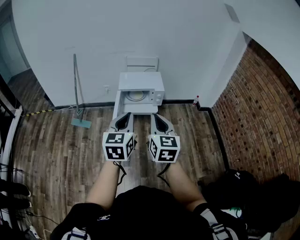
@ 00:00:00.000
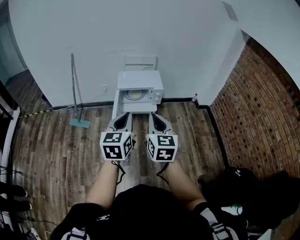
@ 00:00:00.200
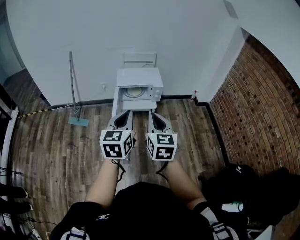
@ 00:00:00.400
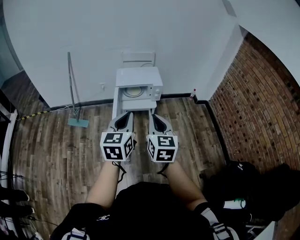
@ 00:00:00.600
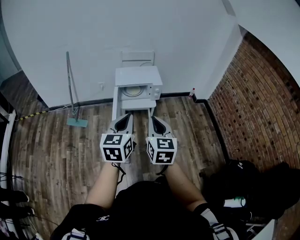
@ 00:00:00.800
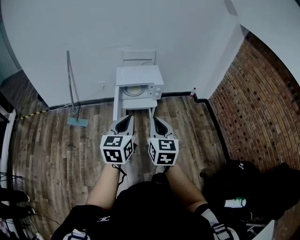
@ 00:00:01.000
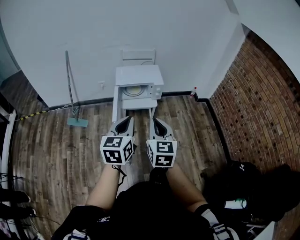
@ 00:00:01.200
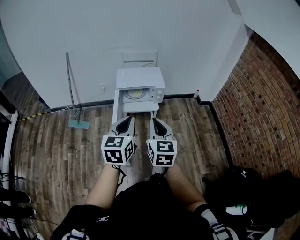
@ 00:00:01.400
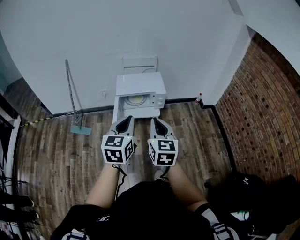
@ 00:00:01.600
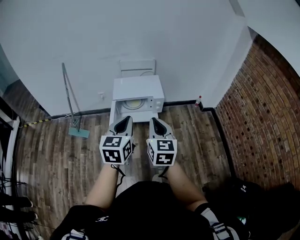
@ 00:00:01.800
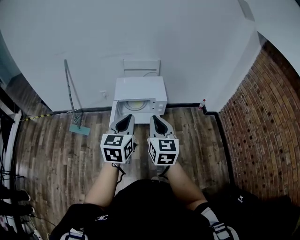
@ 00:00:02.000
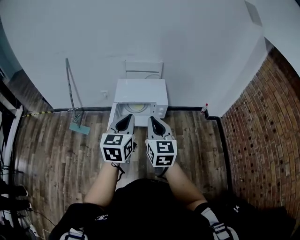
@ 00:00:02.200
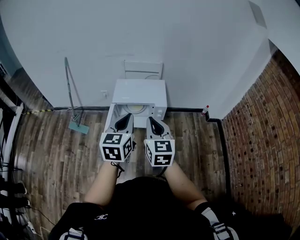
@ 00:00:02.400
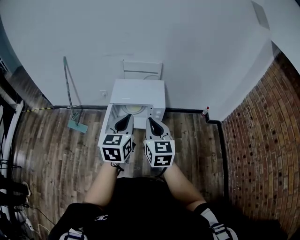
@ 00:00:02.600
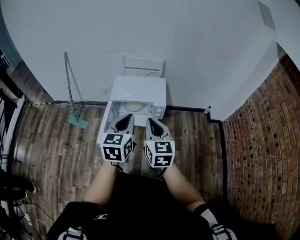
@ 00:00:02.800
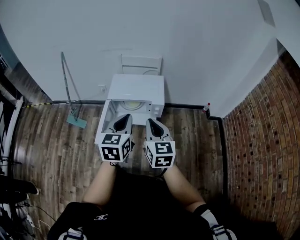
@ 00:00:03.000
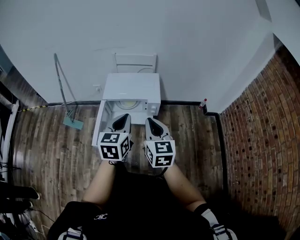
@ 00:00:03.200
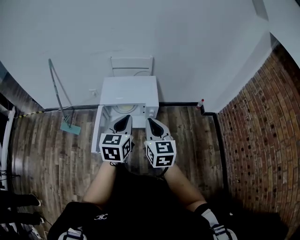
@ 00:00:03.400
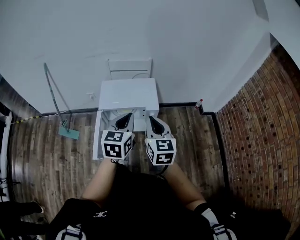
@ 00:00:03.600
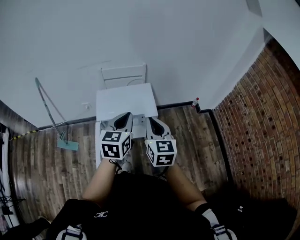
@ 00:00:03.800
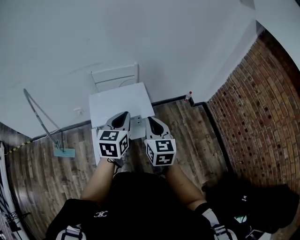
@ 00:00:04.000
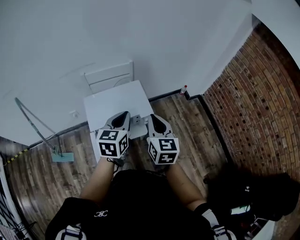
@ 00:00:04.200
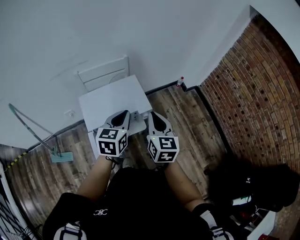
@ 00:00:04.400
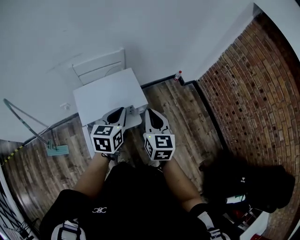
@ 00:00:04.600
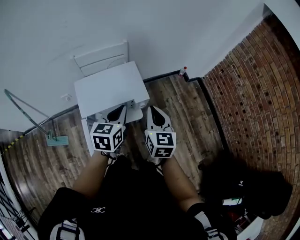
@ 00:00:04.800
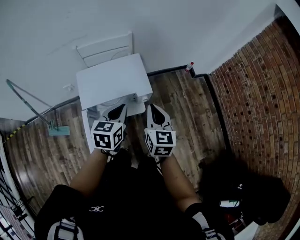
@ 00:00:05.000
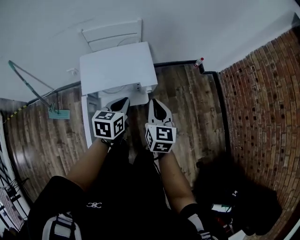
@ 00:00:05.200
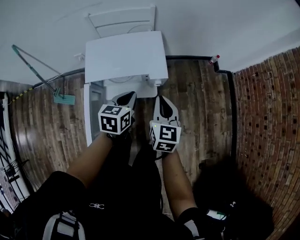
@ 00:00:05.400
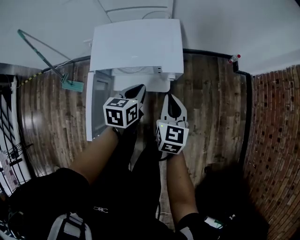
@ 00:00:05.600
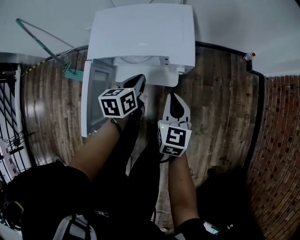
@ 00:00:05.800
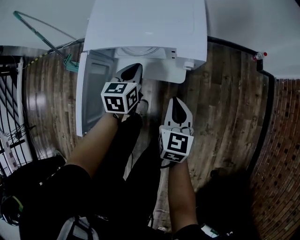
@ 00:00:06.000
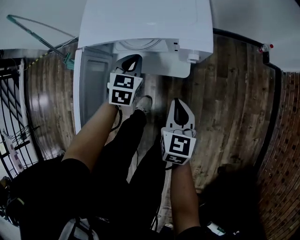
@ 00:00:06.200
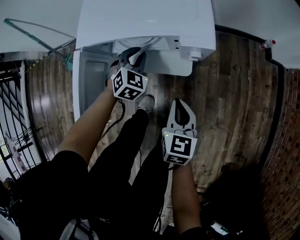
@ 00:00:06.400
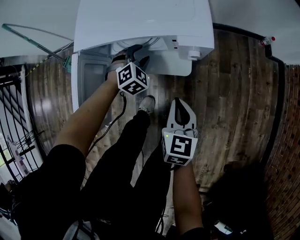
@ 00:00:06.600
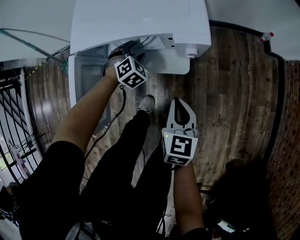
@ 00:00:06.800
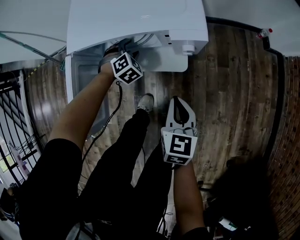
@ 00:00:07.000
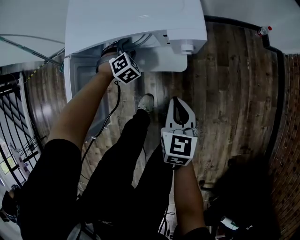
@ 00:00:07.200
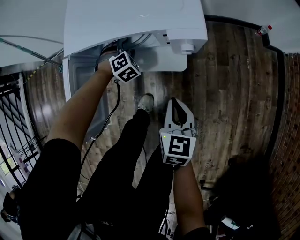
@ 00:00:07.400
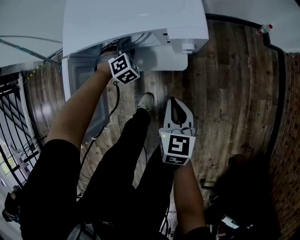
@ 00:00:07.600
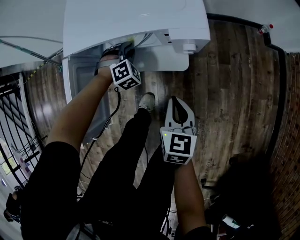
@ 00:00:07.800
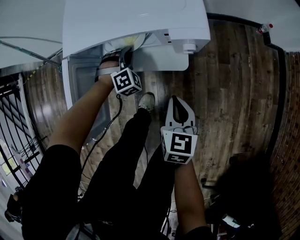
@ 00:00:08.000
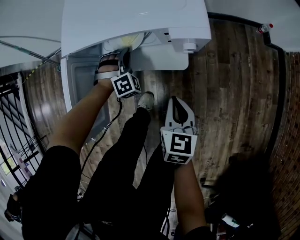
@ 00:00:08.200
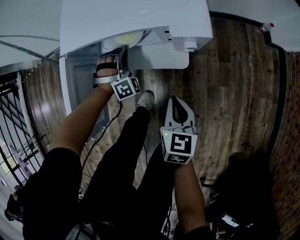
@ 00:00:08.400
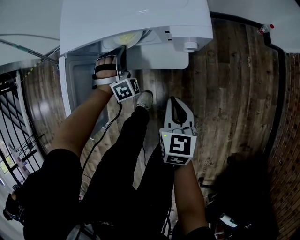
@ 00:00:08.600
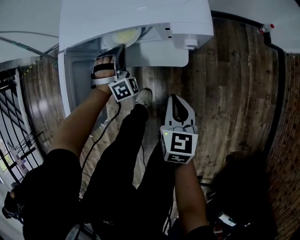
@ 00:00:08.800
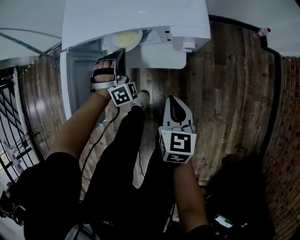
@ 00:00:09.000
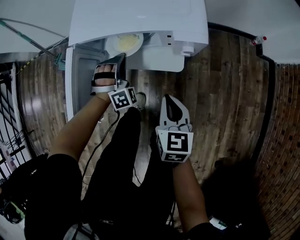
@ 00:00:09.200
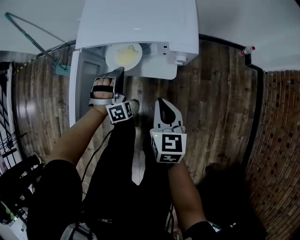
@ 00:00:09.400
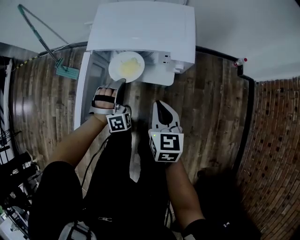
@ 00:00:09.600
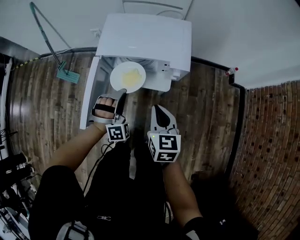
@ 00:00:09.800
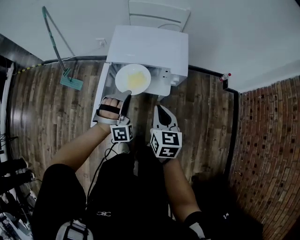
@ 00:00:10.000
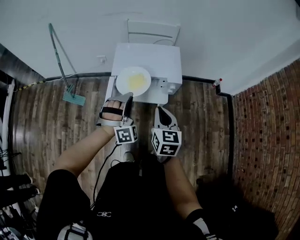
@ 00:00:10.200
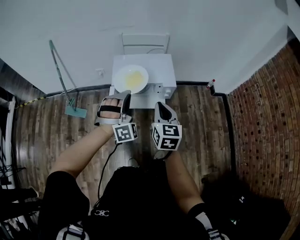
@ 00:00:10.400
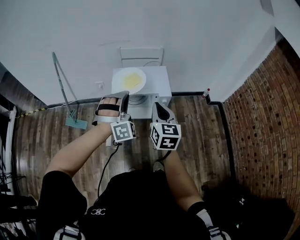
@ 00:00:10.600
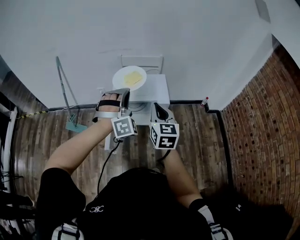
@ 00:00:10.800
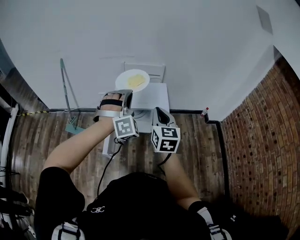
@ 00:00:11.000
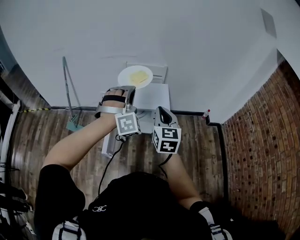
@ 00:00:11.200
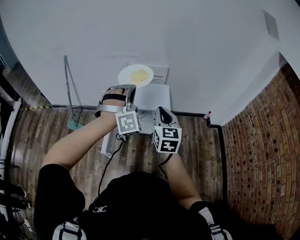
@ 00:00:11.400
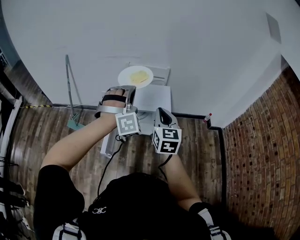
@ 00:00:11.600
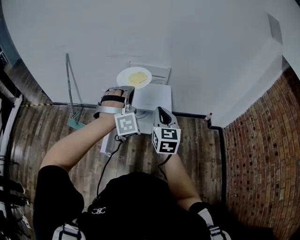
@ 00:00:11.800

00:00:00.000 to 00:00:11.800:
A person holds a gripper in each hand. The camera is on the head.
00:00:00.000 to 00:00:01.400: The left gripper shifts some 5 cm forward; the right gripper travels downward by roughly 5 cm.
00:00:01.400 to 00:00:03.000: The grippers both shift forward and to the right by roughly 25 cm.
00:00:03.000 to 00:00:04.400: The right gripper shifts by some 20 cm, and rotates about 30 degrees, while the left gripper shifts by some 25 cm, and changes its angle by some 30 degrees.
00:00:04.400 to 00:00:06.000: Both grippers travel together downward, about 35 cm. The right gripper rotates some 20 degrees. The left gripper turns by approximately 30 degrees.
00:00:06.000 to 00:00:07.400: The left gripper moves downward and forward, about 20 cm, twists some 70 degrees clockwise, seen from behind, and opens its fingers; the right gripper moves downward, approximately 5 cm.
00:00:07.400 to 00:00:08.800: The left gripper is displaced upward by about 5 cm, tips its fingers upward by roughly 30 degrees, and closes up.
00:00:08.800 to 00:00:10.400: The grippers both shift upward by approximately 40 cm. The right gripper swivels roughly 20 degrees.
00:00:10.400 to 00:00:11.800: The two grippers go about 10 cm upward.

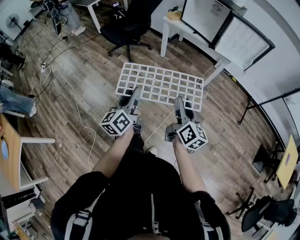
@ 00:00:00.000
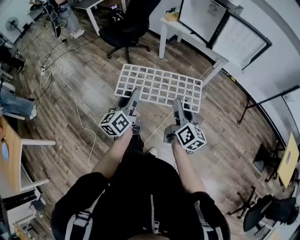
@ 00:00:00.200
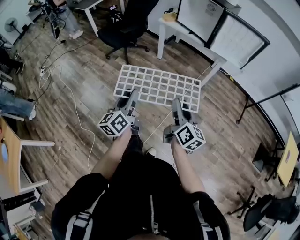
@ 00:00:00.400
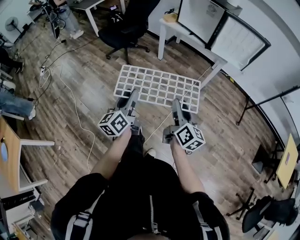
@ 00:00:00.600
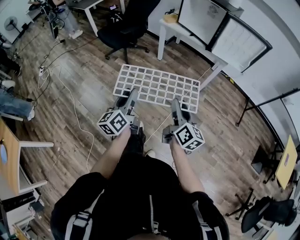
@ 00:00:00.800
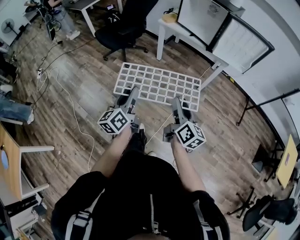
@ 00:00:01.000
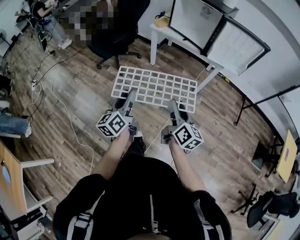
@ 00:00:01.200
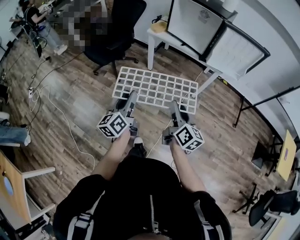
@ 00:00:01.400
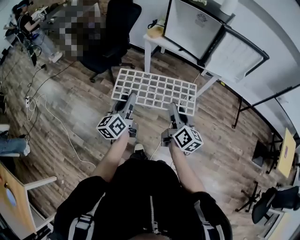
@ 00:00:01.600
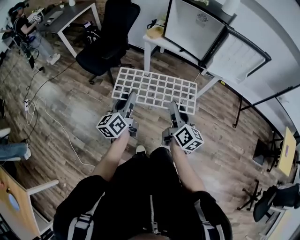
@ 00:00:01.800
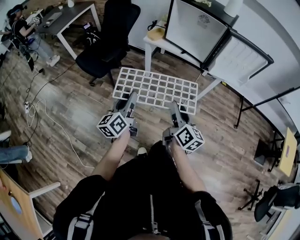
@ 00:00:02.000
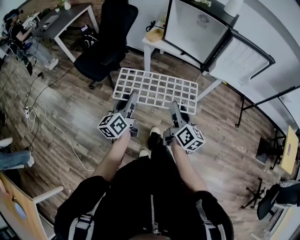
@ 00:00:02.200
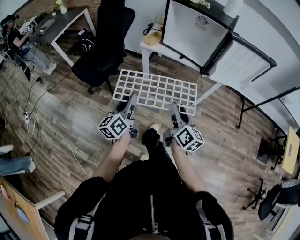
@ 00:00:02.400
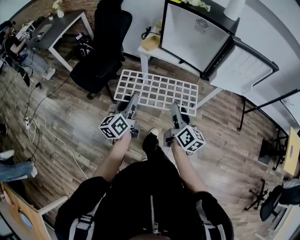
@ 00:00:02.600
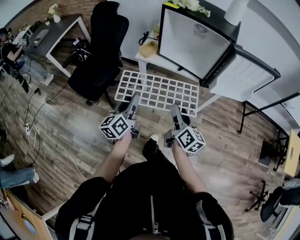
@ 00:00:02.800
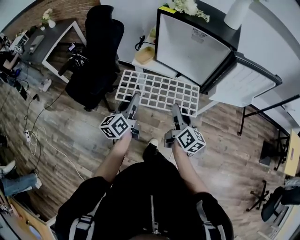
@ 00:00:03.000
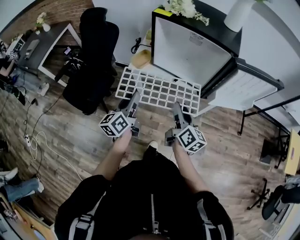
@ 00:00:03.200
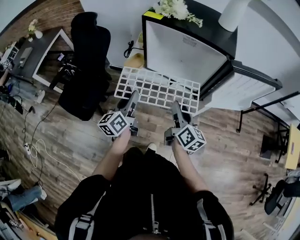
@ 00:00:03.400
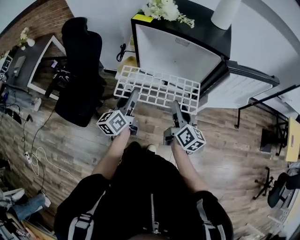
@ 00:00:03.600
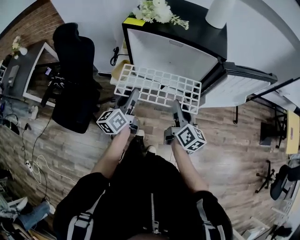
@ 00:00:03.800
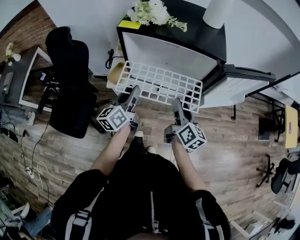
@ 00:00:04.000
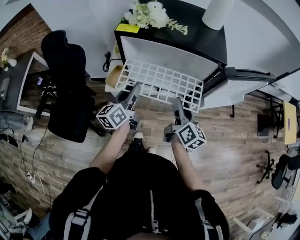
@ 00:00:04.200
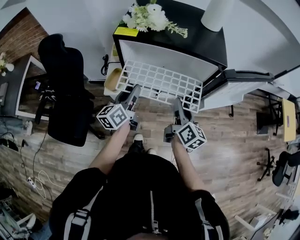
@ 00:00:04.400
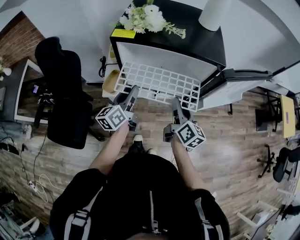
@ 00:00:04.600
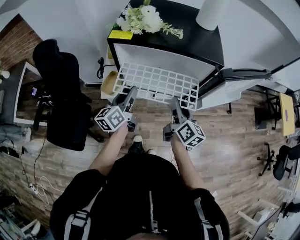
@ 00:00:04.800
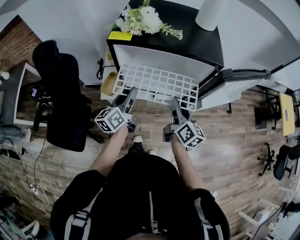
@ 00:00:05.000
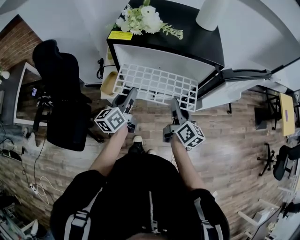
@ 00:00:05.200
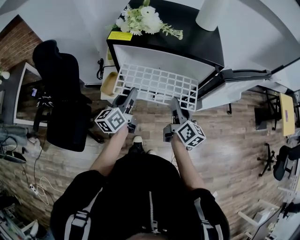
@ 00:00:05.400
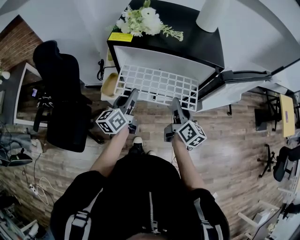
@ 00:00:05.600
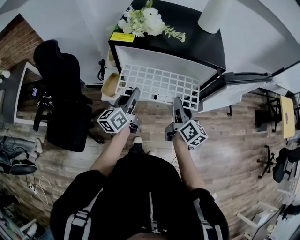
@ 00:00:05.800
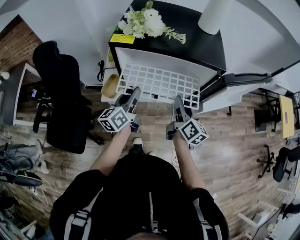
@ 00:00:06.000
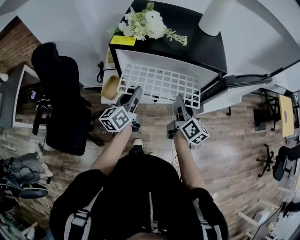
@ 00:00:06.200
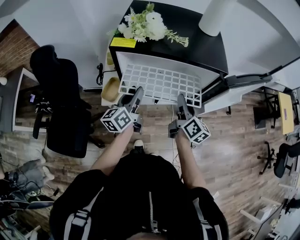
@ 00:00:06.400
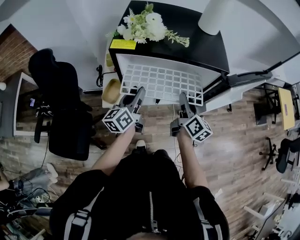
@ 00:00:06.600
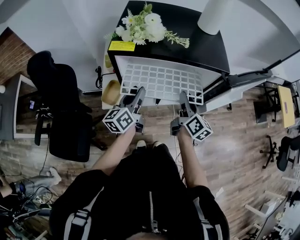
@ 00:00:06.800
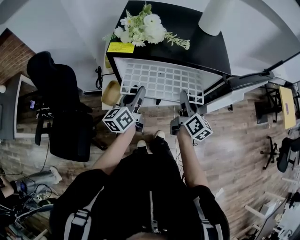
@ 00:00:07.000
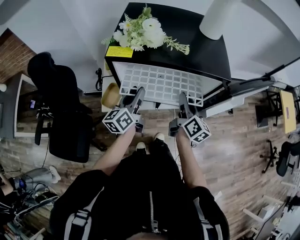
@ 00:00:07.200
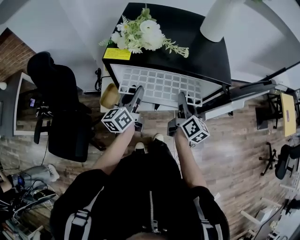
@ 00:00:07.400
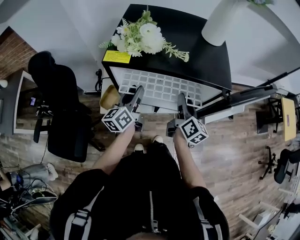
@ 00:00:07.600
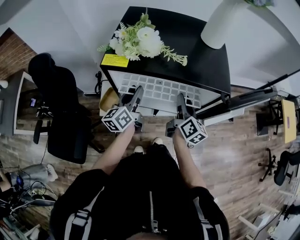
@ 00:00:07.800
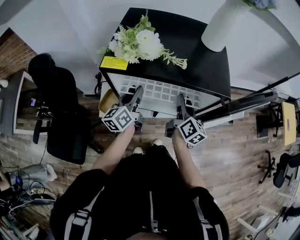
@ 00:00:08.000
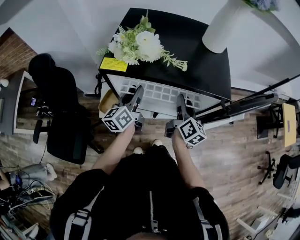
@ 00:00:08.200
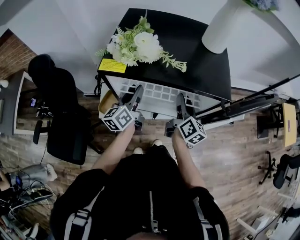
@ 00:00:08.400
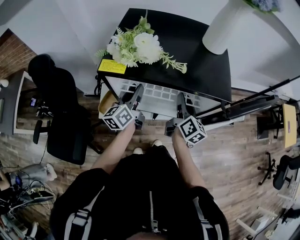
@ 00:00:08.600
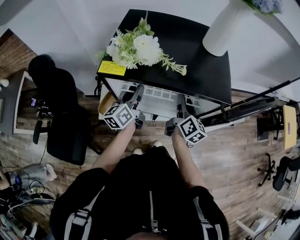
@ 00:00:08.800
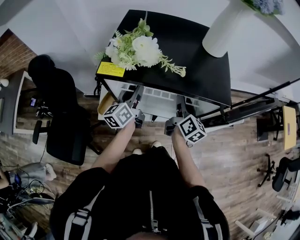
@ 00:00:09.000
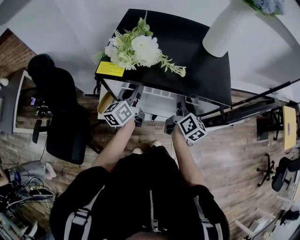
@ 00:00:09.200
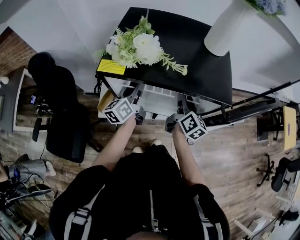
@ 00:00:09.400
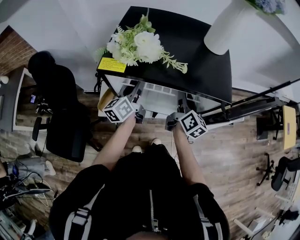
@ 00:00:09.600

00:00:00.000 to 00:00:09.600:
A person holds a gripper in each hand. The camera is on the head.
00:00:00.000 to 00:00:01.600: Both grippers travel together forward, about 20 cm.
00:00:01.600 to 00:00:03.200: The grippers both shift forward by some 35 cm.
00:00:03.200 to 00:00:04.800: Both grippers travel together forward, approximately 20 cm. The left gripper turns by roughly 20 degrees.
00:00:04.800 to 00:00:06.400: The grippers stay close to where they were, moving slightly.
00:00:06.400 to 00:00:08.000: The grippers both shift forward by about 10 cm.
00:00:08.000 to 00:00:09.600: The grippers stay close to where they were, moving slightly.

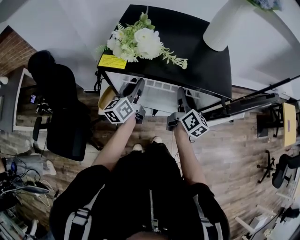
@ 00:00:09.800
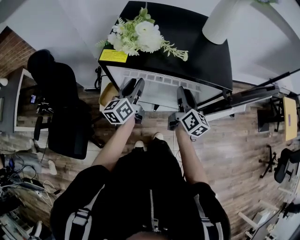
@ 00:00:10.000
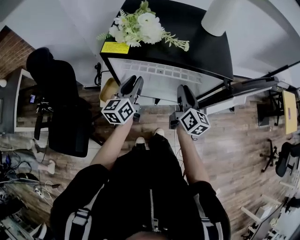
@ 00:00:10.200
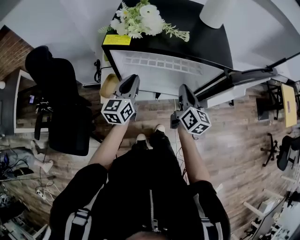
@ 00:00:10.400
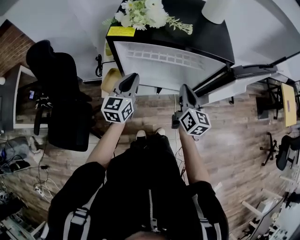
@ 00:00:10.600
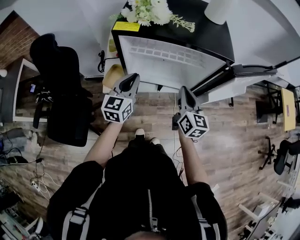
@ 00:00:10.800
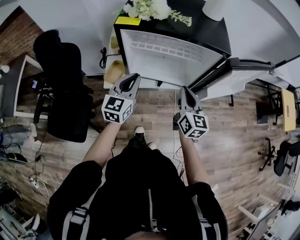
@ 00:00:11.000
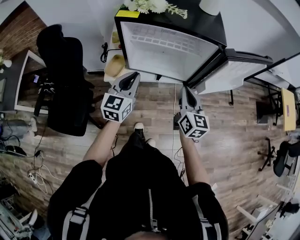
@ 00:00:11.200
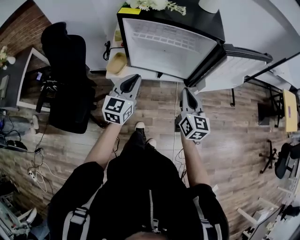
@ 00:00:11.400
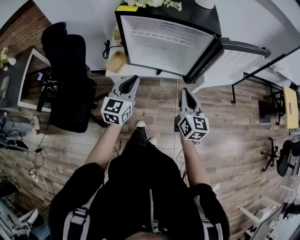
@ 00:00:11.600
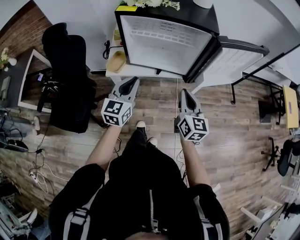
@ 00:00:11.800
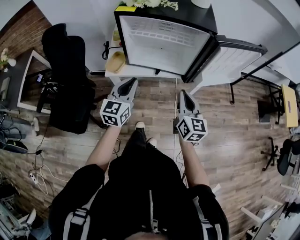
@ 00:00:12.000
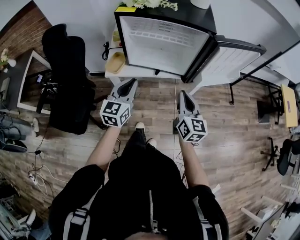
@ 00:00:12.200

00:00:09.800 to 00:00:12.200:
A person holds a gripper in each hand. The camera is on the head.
00:00:09.800 to 00:00:11.000: The two grippers go some 15 cm backward. The right gripper rotates approximately 30 degrees, and closes its fingers. The left gripper swivels approximately 40 degrees, and closes up.
00:00:11.000 to 00:00:12.200: Both grippers move backward, some 10 cm.
